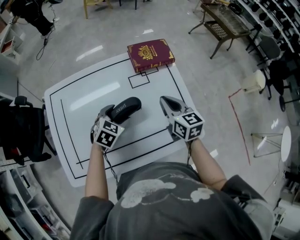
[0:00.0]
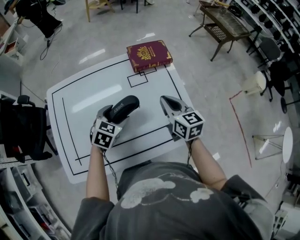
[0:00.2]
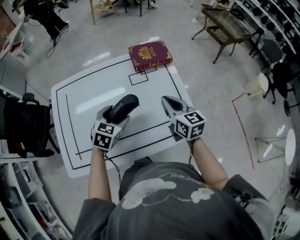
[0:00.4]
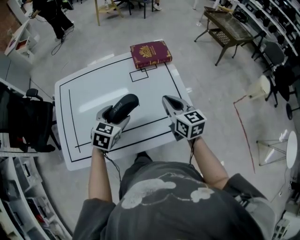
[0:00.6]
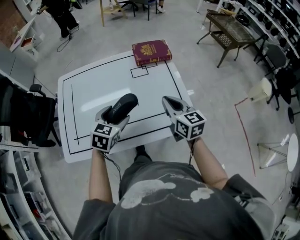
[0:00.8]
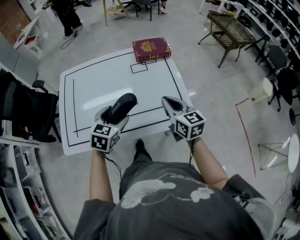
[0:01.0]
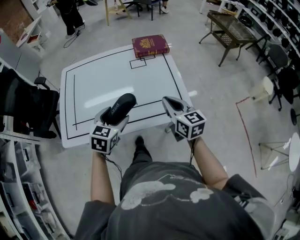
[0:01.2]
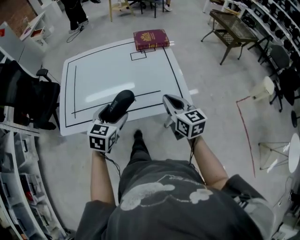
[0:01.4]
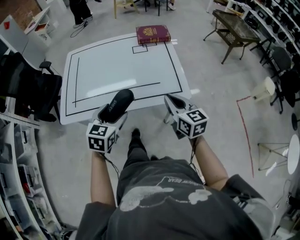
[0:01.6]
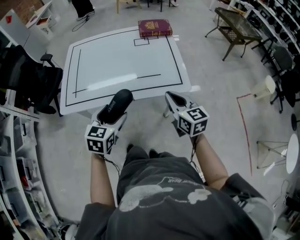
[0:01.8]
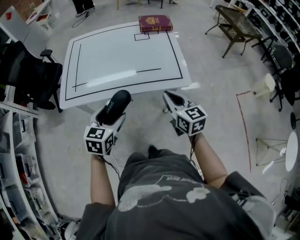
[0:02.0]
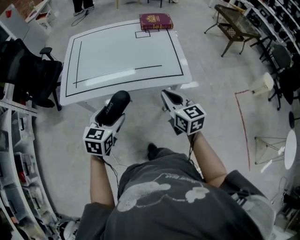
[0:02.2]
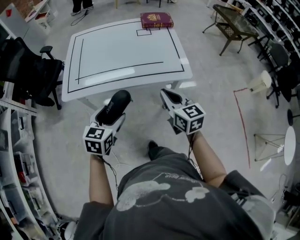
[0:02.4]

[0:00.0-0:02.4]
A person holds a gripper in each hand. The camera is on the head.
0:00.0 to 0:01.2: The left gripper travels backward and upward by about 20 cm, and swivels some 20 degrees. The right gripper goes about 20 cm backward.
0:01.2 to 0:02.4: The two grippers go some 20 cm backward.

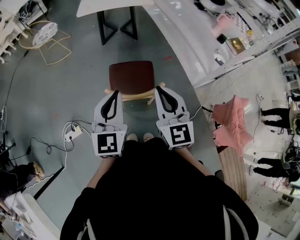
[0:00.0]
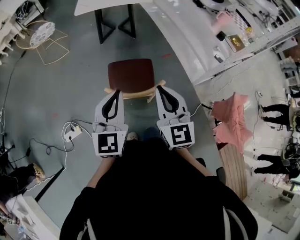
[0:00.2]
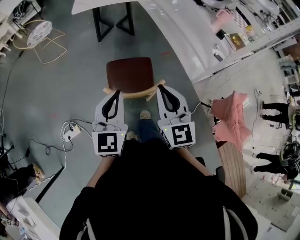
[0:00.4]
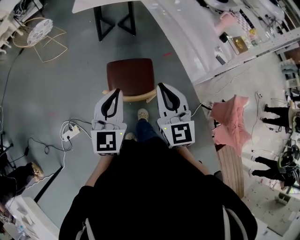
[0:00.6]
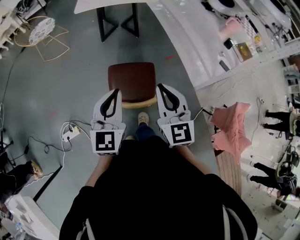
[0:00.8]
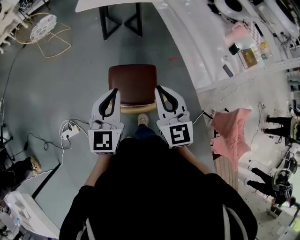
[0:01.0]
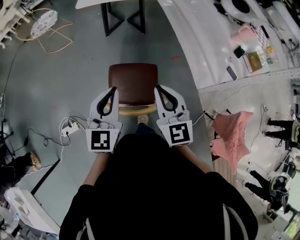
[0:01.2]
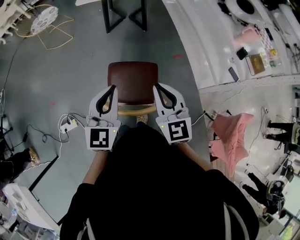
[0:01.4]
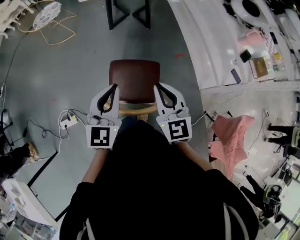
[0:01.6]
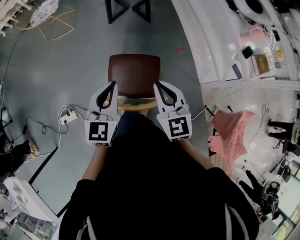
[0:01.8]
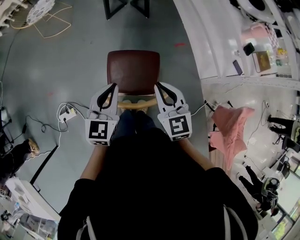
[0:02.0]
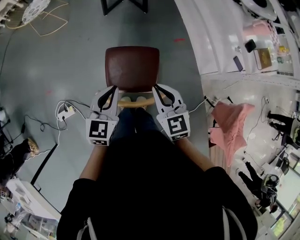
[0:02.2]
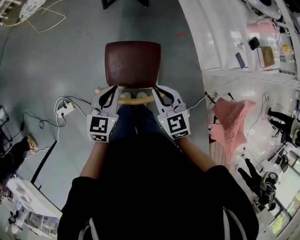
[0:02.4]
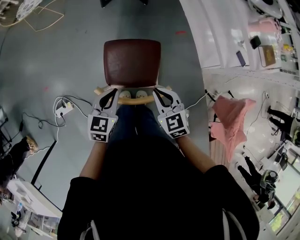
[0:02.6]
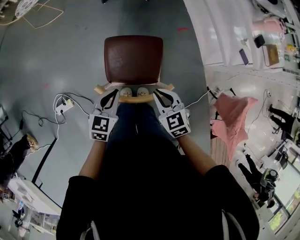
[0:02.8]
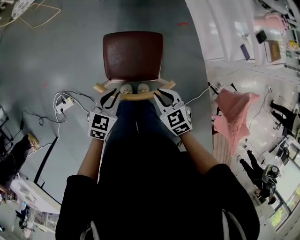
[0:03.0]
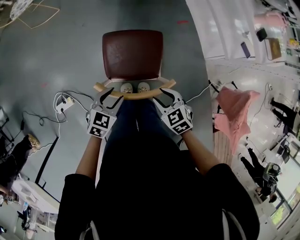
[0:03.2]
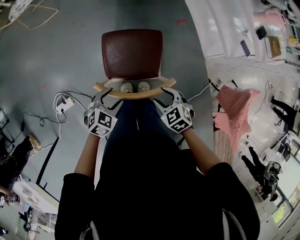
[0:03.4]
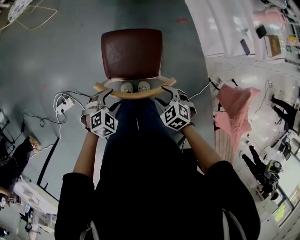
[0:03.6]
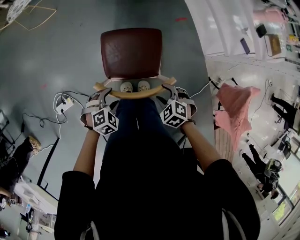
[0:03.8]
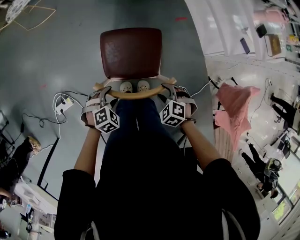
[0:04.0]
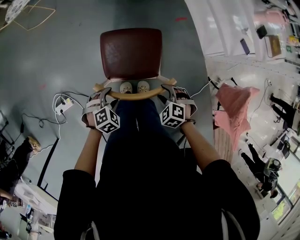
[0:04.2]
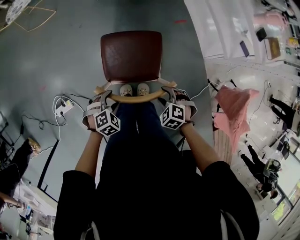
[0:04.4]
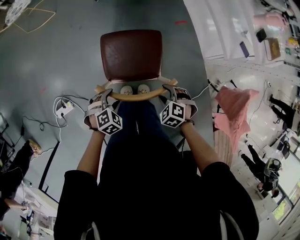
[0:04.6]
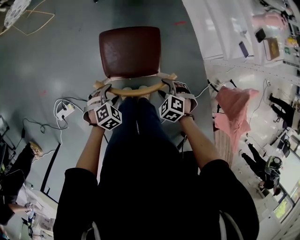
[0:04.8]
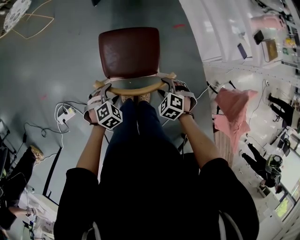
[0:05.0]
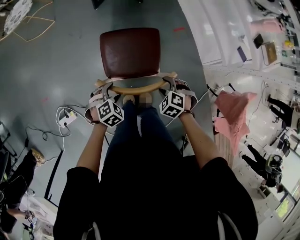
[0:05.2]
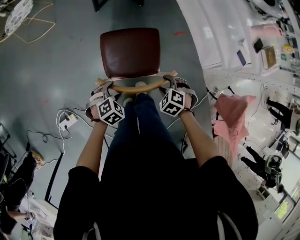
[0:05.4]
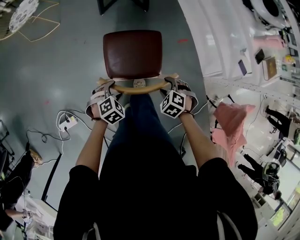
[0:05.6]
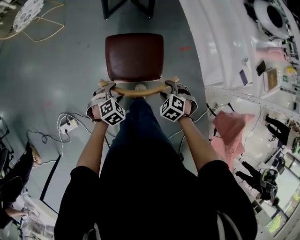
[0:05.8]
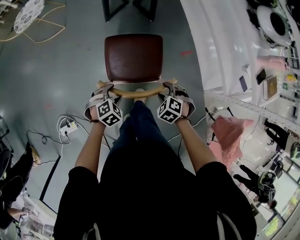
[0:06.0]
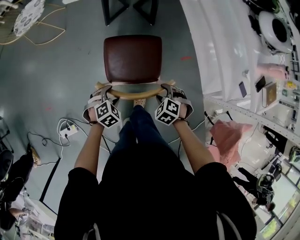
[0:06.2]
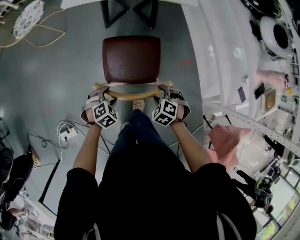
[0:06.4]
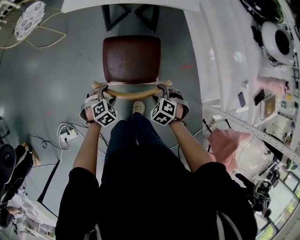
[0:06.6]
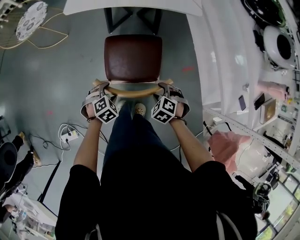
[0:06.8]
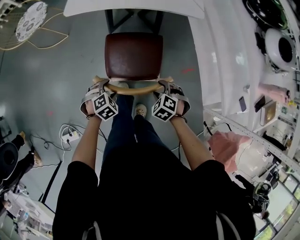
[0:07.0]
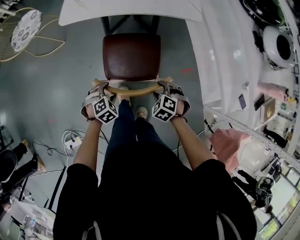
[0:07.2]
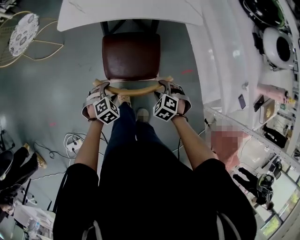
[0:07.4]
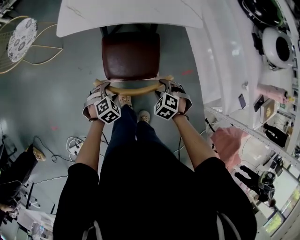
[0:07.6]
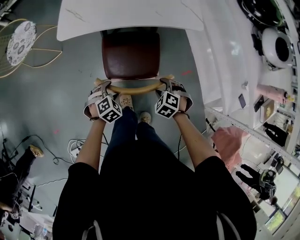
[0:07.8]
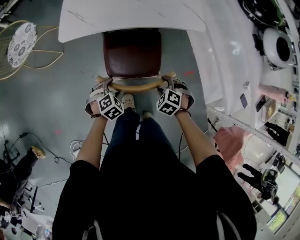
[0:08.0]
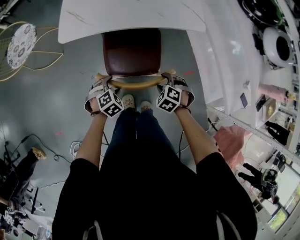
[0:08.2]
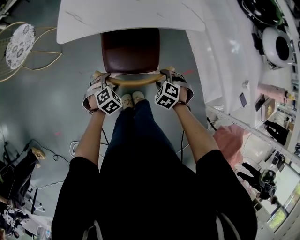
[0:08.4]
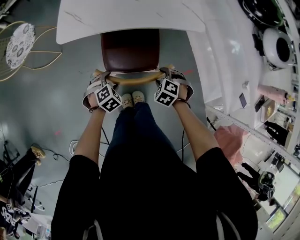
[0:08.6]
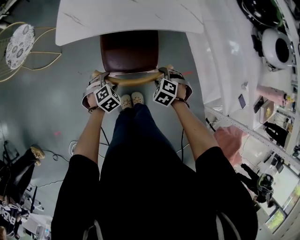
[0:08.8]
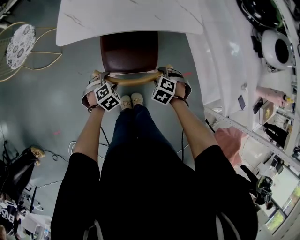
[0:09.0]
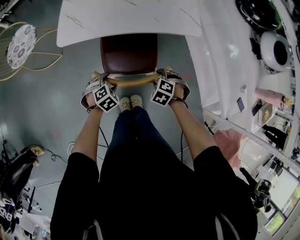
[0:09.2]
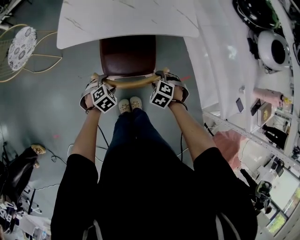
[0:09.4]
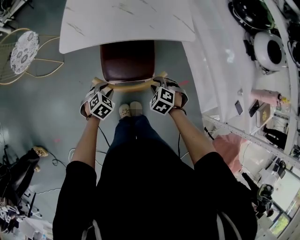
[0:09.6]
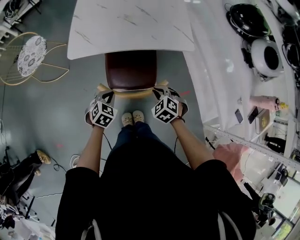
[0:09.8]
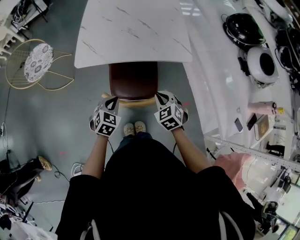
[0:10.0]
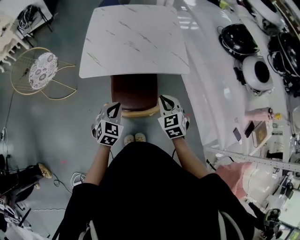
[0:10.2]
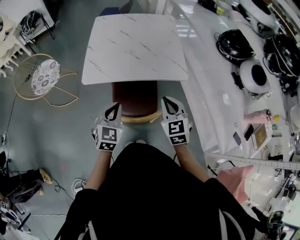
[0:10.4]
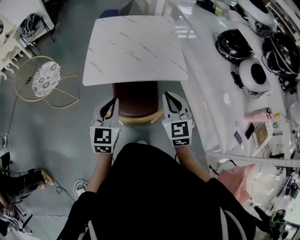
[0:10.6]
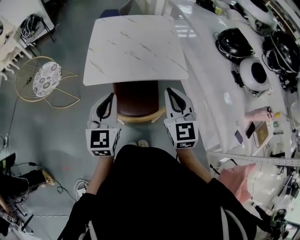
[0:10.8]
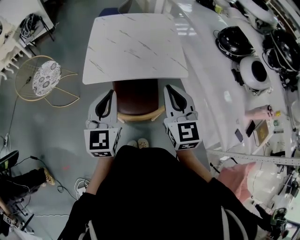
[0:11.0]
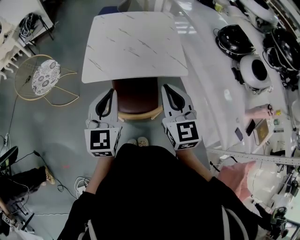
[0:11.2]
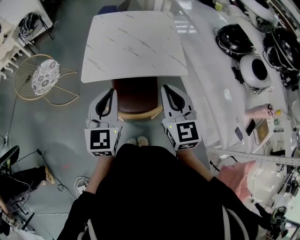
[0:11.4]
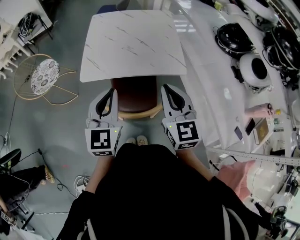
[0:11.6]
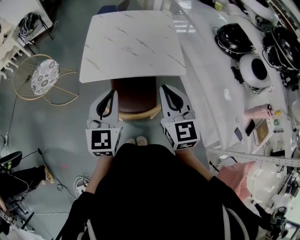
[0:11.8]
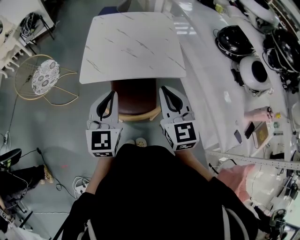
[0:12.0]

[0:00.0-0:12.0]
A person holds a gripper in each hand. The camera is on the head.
0:00.0 to 0:01.6: The grippers both shift forward and downward by approximately 20 cm.
0:01.6 to 0:03.0: The grippers both shift downward by approximately 25 cm. The left gripper angles its fingers downward, by some 30 degrees; the right gripper tilts its fingers about 30 degrees downward.
0:03.0 to 0:04.4: Both grippers travel together downward, approximately 10 cm. The left gripper swivels roughly 40 degrees, and opens up. The right gripper swivels some 40 degrees, and opens.
0:04.4 to 0:06.0: The grippers both shift forward by roughly 25 cm.
0:06.0 to 0:07.6: The two grippers go roughly 25 cm forward.
0:07.6 to 0:09.0: The left gripper shifts by roughly 10 cm; the right gripper changes place by about 10 cm.
0:09.0 to 0:10.4: Both grippers move upward, approximately 30 cm. The left gripper points its fingers approximately 50 degrees further upward, and closes up; the right gripper tilts its fingers roughly 50 degrees upward, and closes up.
0:10.4 to 0:12.0: The grippers both shift upward by some 15 cm. The right gripper swivels roughly 20 degrees.

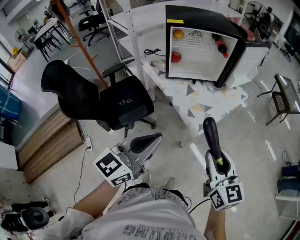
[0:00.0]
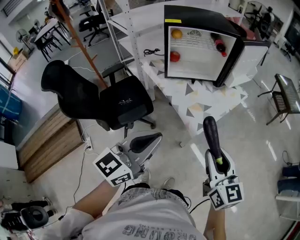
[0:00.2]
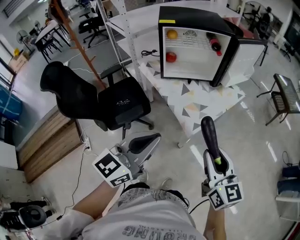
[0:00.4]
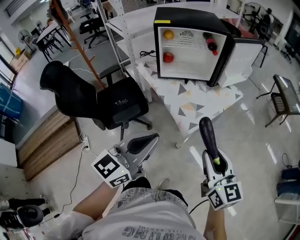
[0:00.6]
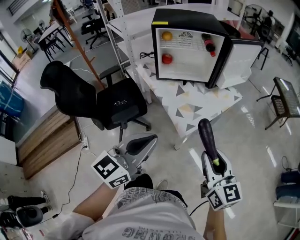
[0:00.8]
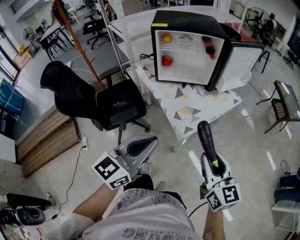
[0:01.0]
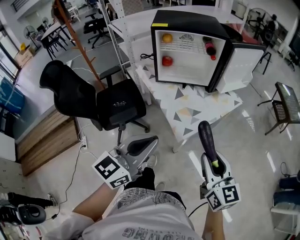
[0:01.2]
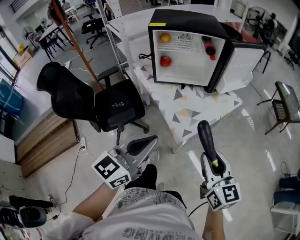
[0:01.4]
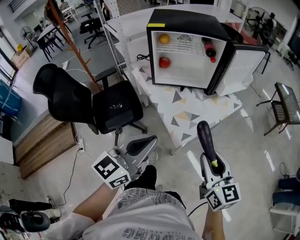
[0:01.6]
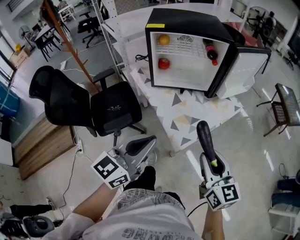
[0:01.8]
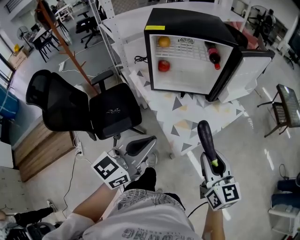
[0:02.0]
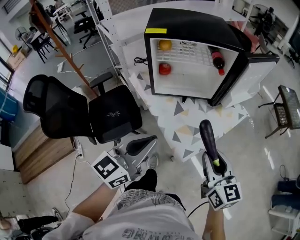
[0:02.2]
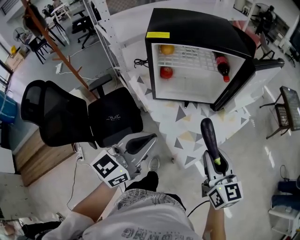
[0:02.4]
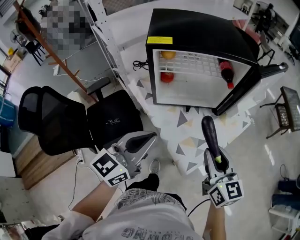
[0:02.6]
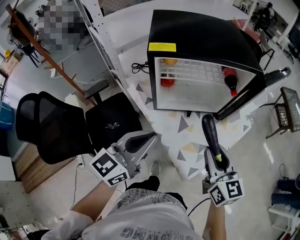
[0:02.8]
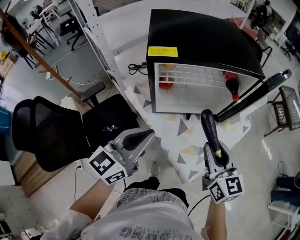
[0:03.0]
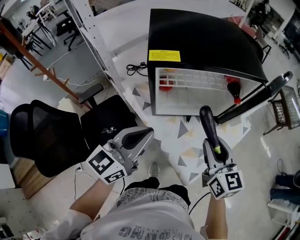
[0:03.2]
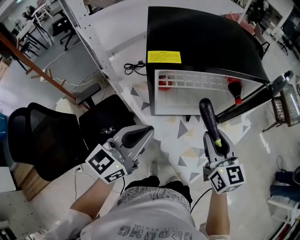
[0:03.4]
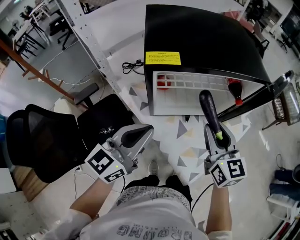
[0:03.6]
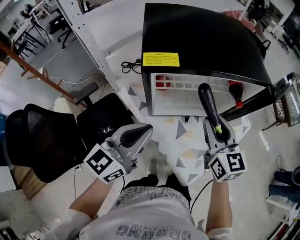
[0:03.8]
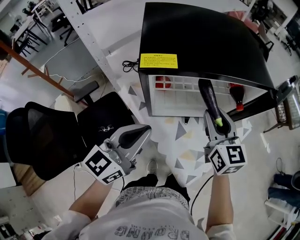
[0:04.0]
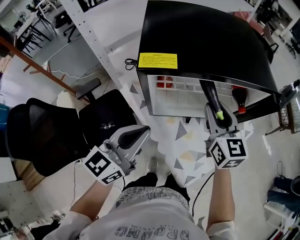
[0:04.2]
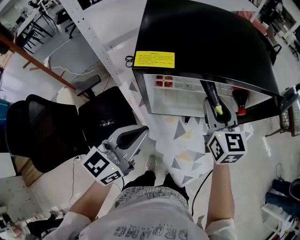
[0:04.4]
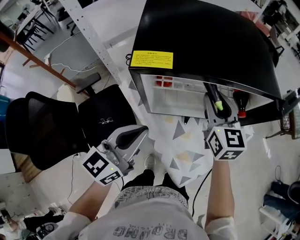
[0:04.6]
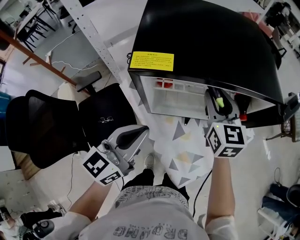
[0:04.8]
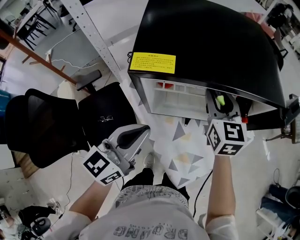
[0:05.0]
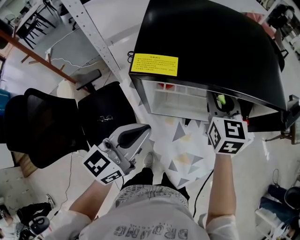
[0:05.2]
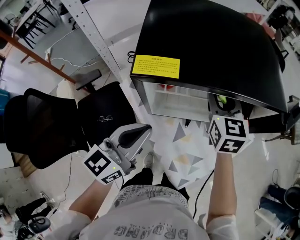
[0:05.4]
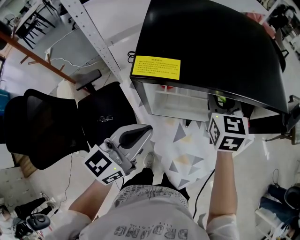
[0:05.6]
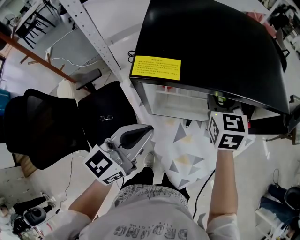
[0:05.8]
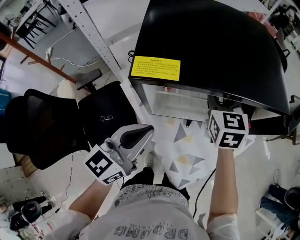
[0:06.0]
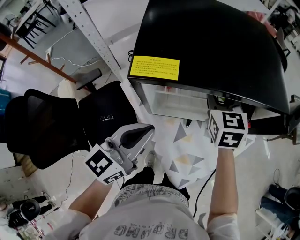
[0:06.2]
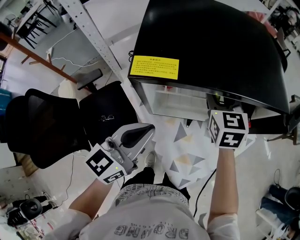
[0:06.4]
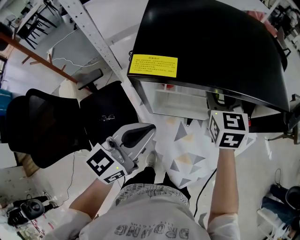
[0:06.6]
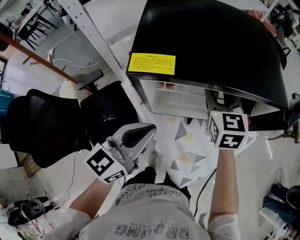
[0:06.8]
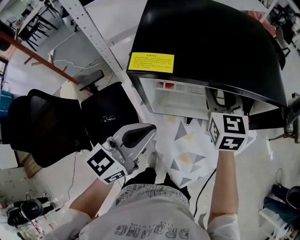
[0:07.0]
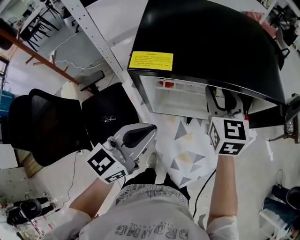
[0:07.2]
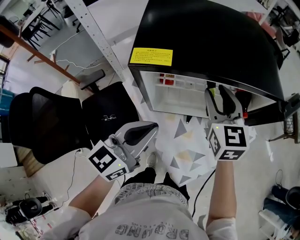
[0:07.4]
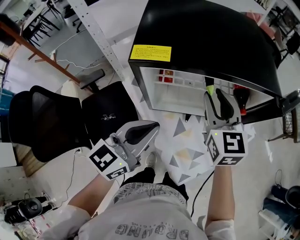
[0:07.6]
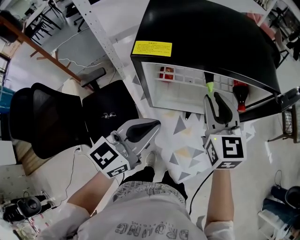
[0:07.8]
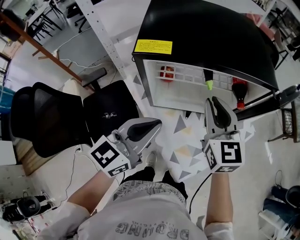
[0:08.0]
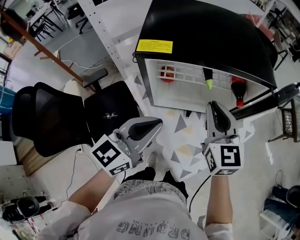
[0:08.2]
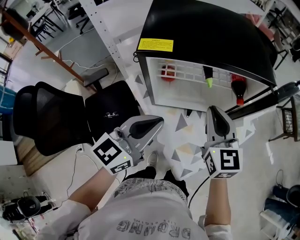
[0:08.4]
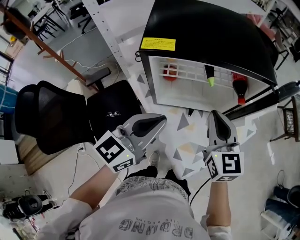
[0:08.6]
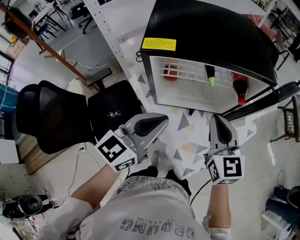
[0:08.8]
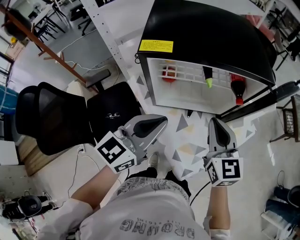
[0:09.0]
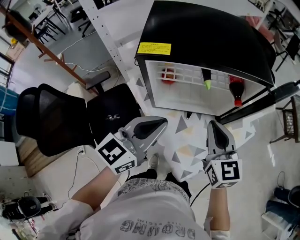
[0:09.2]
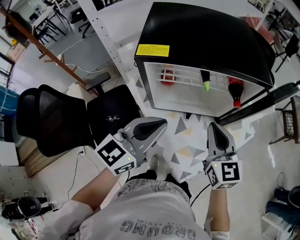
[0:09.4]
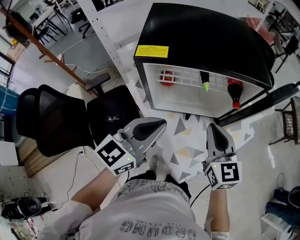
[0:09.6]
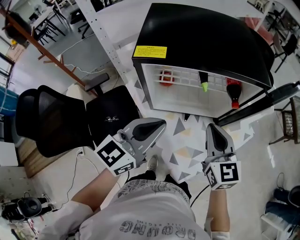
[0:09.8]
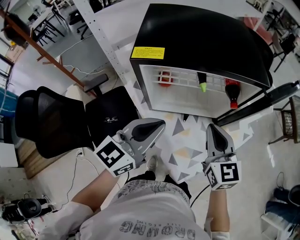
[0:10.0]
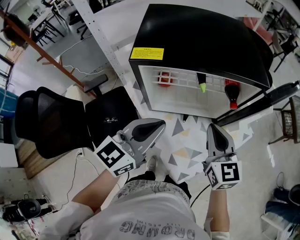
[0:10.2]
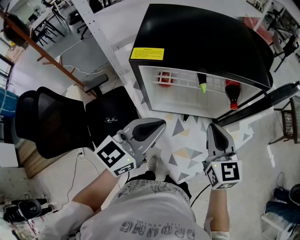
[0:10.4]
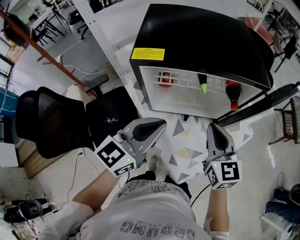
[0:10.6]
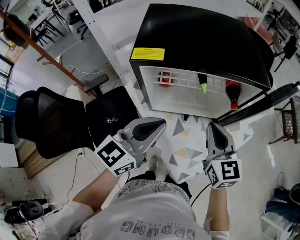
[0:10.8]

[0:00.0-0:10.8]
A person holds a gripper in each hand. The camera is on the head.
0:00.0 to 0:01.6: Both grippers move to the right and forward, roughly 10 cm.
0:01.6 to 0:03.0: The two grippers go approximately 30 cm forward and to the left.
0:03.0 to 0:04.6: The right gripper travels forward by approximately 20 cm; the left gripper moves forward, some 5 cm.
0:04.6 to 0:06.2: The right gripper goes roughly 5 cm forward.
0:06.2 to 0:07.8: The right gripper shifts some 10 cm backward, while the left gripper shifts by roughly 5 cm.
0:07.8 to 0:09.2: The right gripper is displaced backward by about 10 cm, and closes.
0:09.2 to 0:10.8: There are only small adjustments of the grippers.
